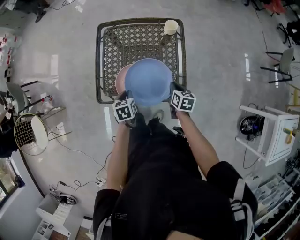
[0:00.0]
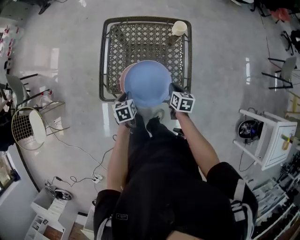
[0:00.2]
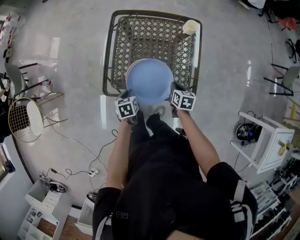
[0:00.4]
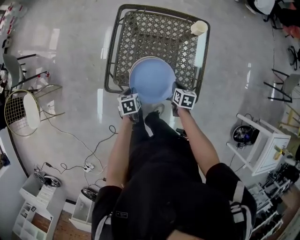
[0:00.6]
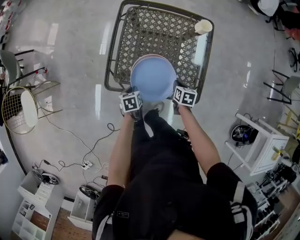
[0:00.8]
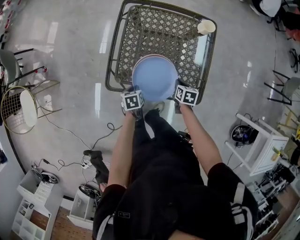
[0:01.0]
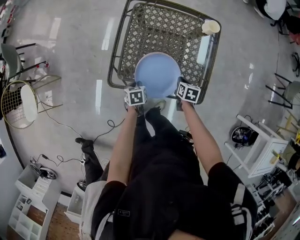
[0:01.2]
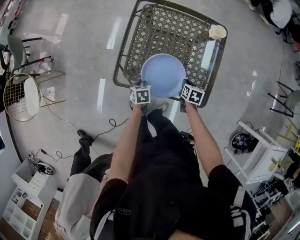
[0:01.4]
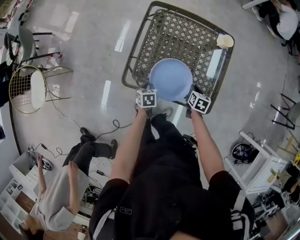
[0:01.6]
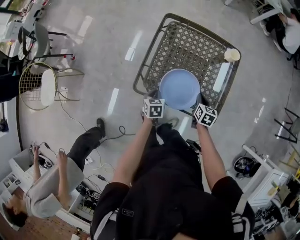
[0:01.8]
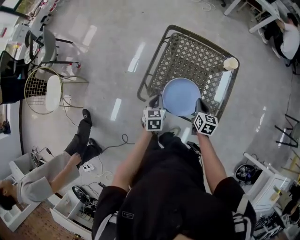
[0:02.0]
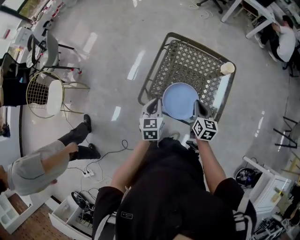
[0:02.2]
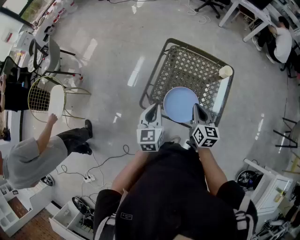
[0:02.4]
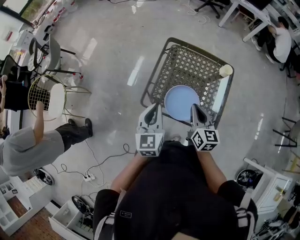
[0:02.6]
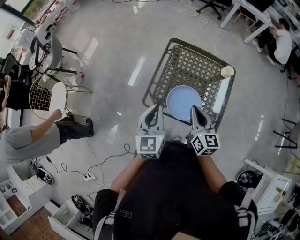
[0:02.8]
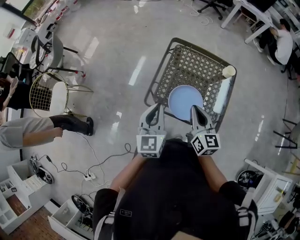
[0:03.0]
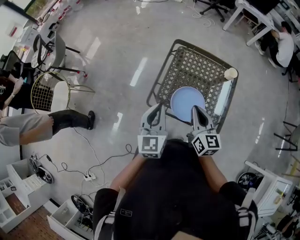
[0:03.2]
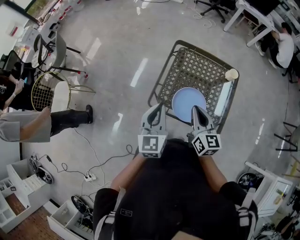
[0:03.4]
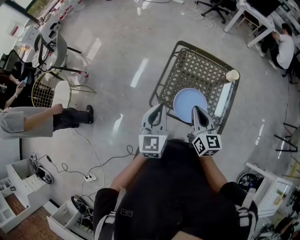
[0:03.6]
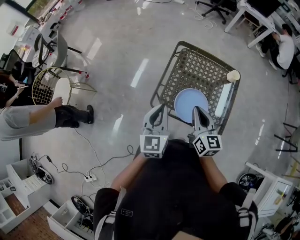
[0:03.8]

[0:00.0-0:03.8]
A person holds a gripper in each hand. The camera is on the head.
0:00.0 to 0:01.2: Both grippers travel together downward and to the left, approximately 15 cm.
0:01.2 to 0:02.6: The left gripper travels upward by roughly 40 cm, and tilts its fingers some 50 degrees upward. Meanwhile the right gripper shifts approximately 35 cm upward and to the left, and tilts its fingers roughly 40 degrees upward.
0:02.6 to 0:03.8: The right gripper travels to the left by roughly 5 cm.

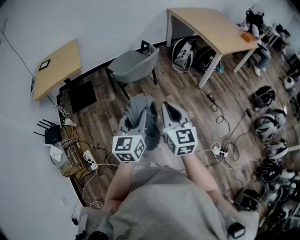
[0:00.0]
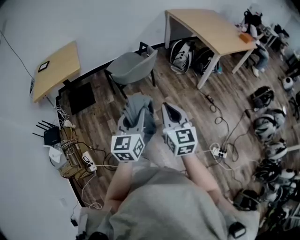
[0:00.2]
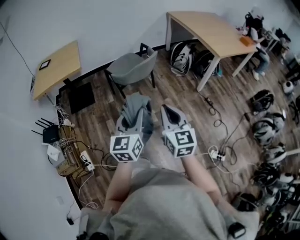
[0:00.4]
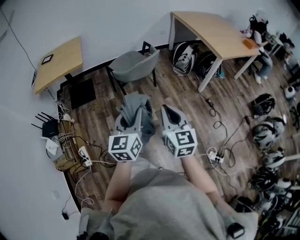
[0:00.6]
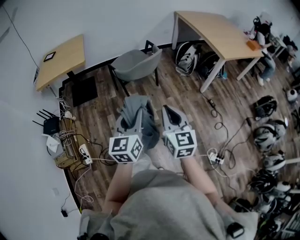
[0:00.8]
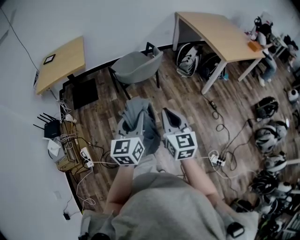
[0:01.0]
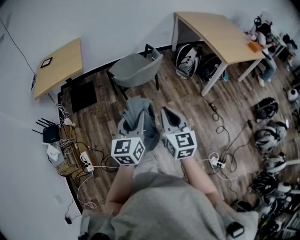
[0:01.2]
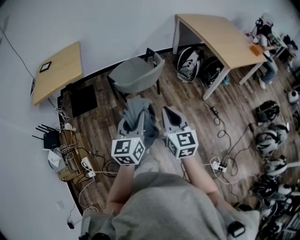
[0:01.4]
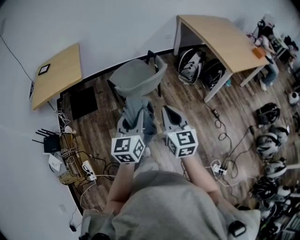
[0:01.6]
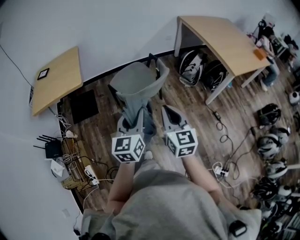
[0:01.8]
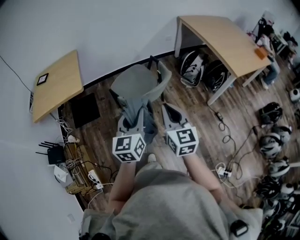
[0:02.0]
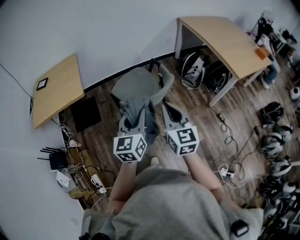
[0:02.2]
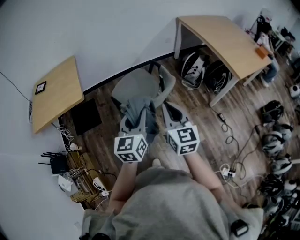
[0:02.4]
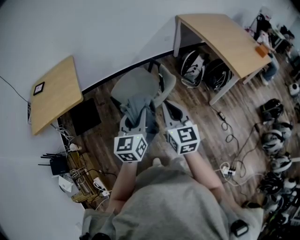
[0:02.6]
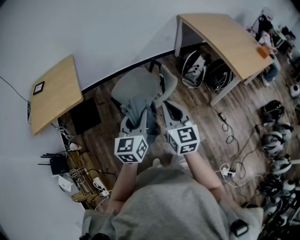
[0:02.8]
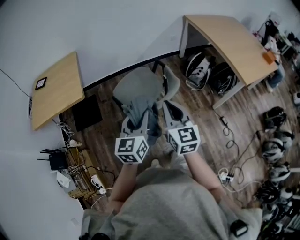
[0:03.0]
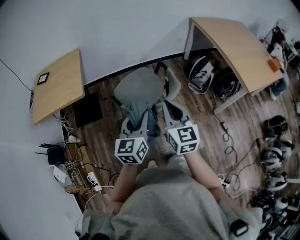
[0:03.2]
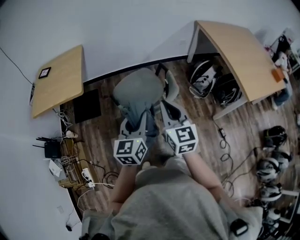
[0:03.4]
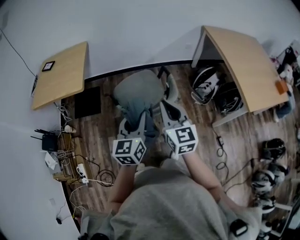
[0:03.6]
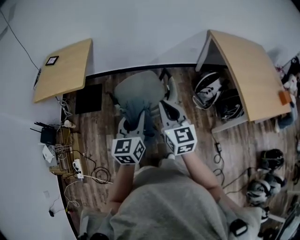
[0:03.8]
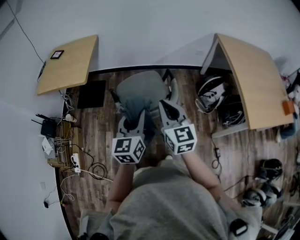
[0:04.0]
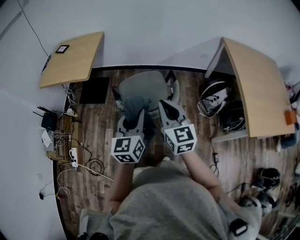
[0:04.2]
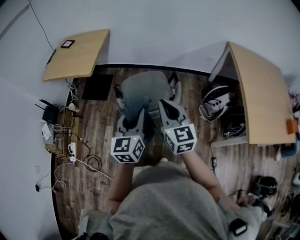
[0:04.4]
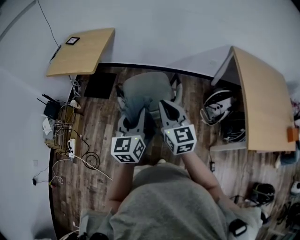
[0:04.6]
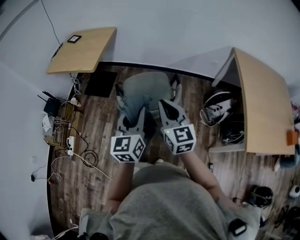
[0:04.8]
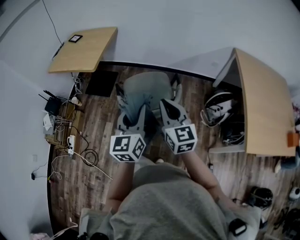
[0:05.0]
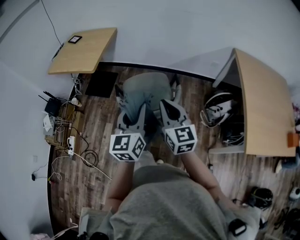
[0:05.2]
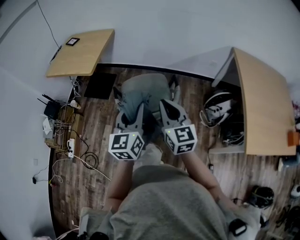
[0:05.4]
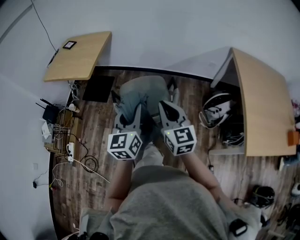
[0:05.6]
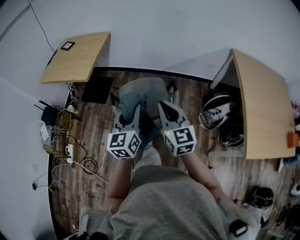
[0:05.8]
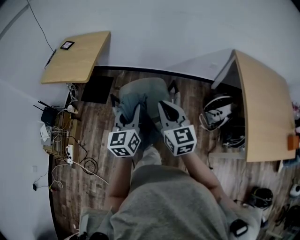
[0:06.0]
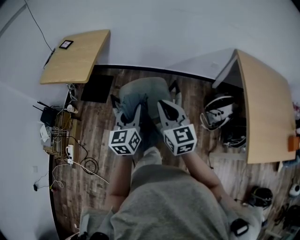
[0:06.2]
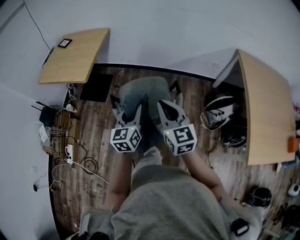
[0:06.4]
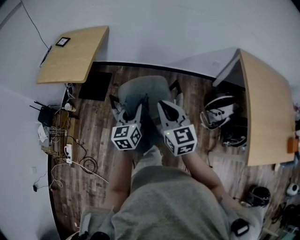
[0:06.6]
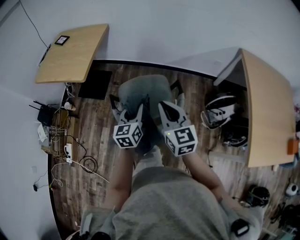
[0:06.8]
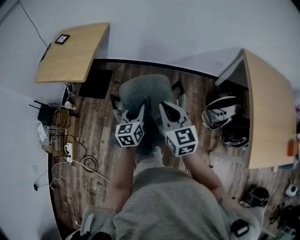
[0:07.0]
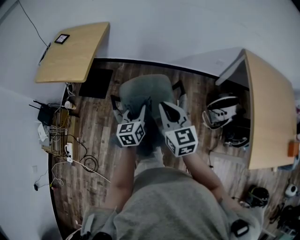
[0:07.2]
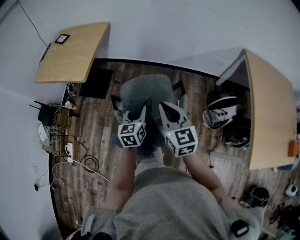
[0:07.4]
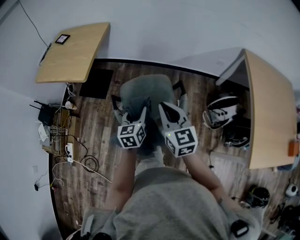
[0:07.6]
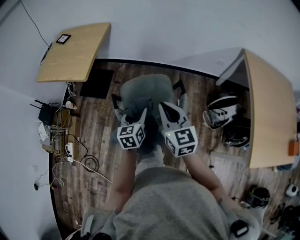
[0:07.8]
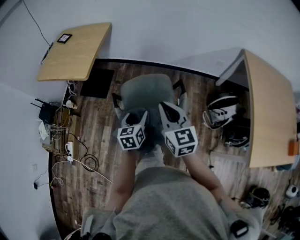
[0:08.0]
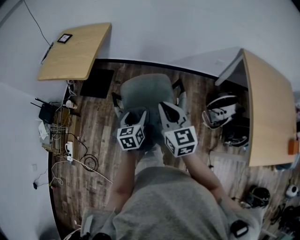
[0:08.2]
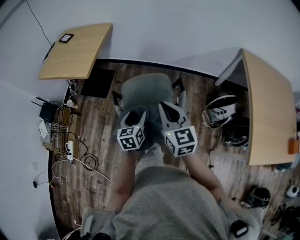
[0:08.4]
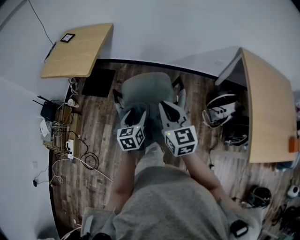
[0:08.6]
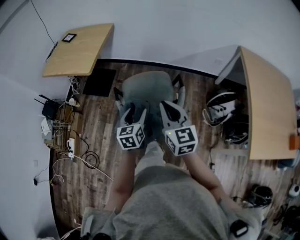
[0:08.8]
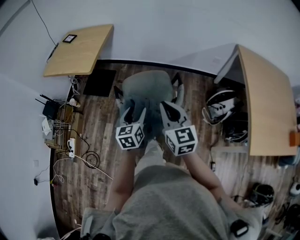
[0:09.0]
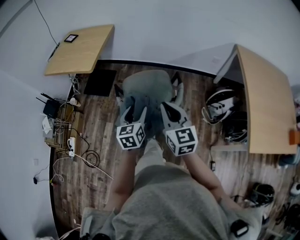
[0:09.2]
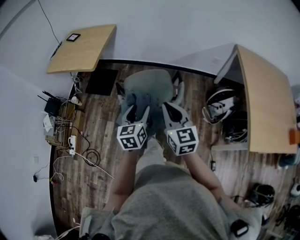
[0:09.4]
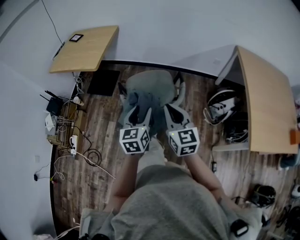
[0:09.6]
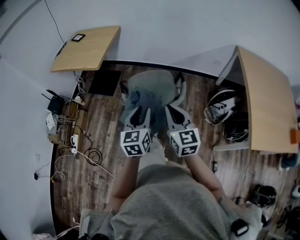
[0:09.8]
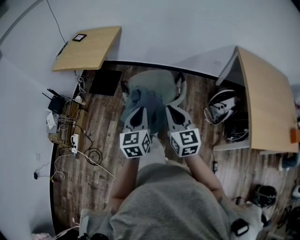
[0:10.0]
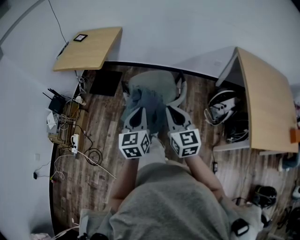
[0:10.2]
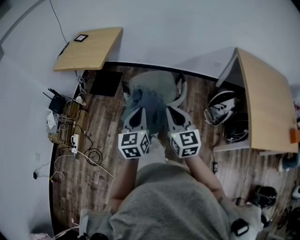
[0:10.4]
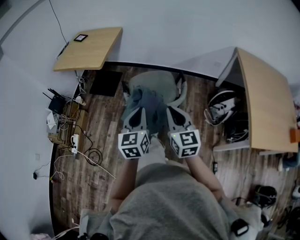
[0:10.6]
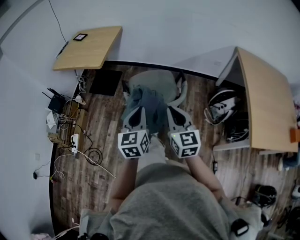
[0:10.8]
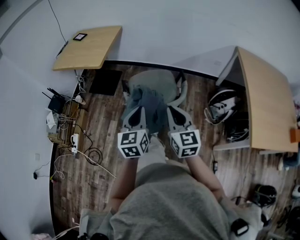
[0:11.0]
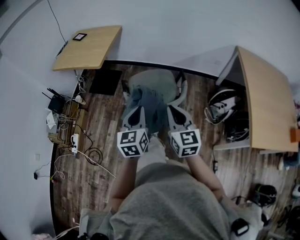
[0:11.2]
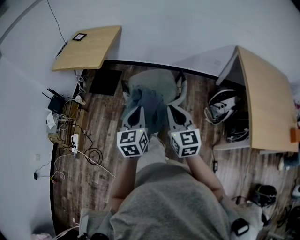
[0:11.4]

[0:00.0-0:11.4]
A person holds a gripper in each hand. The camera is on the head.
0:00.0 to 0:01.4: Both grippers travel together forward, roughly 10 cm.
0:01.4 to 0:02.8: Both grippers move forward, about 20 cm.
0:02.8 to 0:04.2: The right gripper moves approximately 15 cm, and turns by about 30 degrees. Meanwhile the left gripper shifts by some 10 cm, and swivels roughly 30 degrees.
0:04.2 to 0:05.6: The left gripper ends up approximately 5 cm from where it was. The right gripper changes place by approximately 5 cm.
0:05.6 to 0:07.2: The left gripper is displaced downward and forward by some 20 cm. The right gripper shifts some 10 cm forward and downward.
0:07.2 to 0:08.6: The two grippers go approximately 5 cm backward. The left gripper opens its fingers.
0:08.6 to 0:10.0: The left gripper moves backward and upward, some 15 cm, and closes its fingers. Meanwhile the right gripper goes some 10 cm backward.
0:10.0 to 0:11.4: The grippers move only a little.

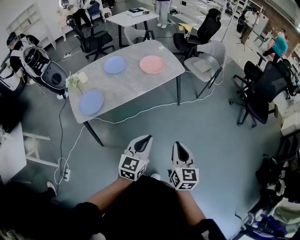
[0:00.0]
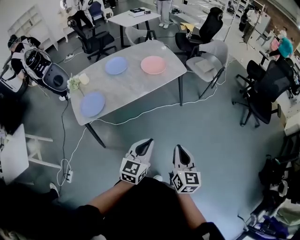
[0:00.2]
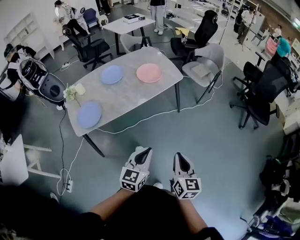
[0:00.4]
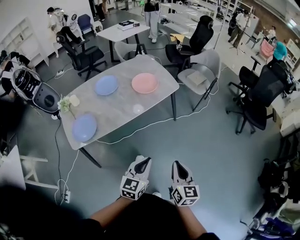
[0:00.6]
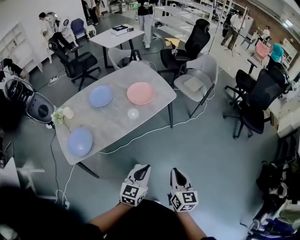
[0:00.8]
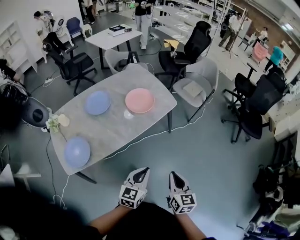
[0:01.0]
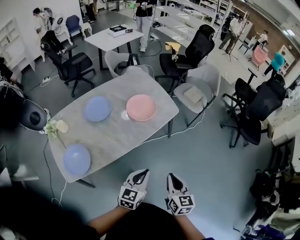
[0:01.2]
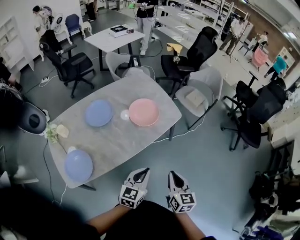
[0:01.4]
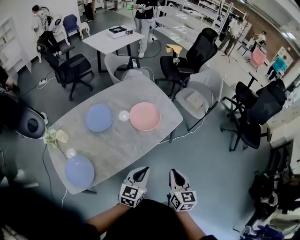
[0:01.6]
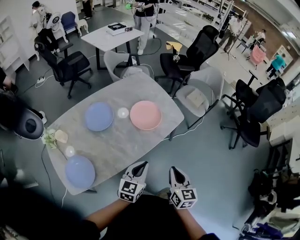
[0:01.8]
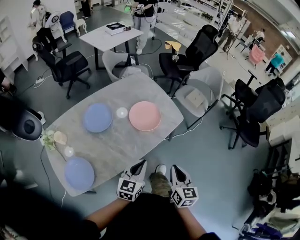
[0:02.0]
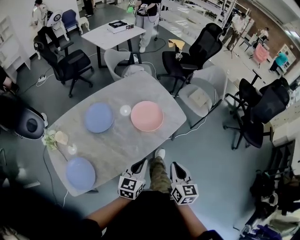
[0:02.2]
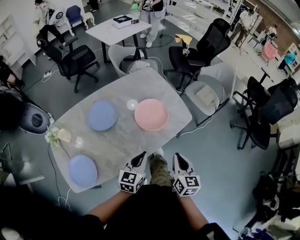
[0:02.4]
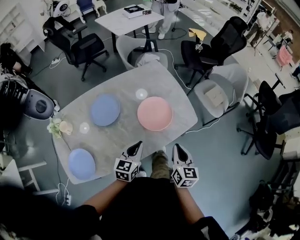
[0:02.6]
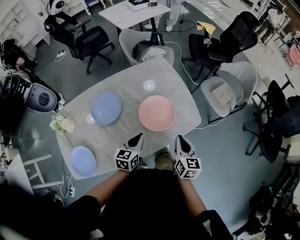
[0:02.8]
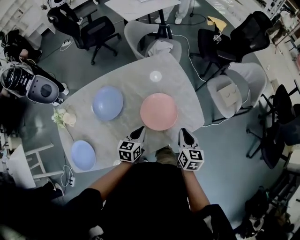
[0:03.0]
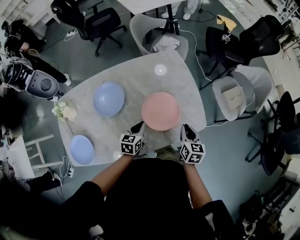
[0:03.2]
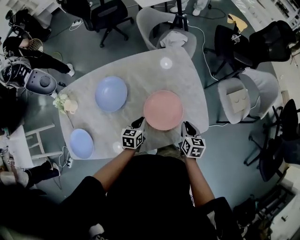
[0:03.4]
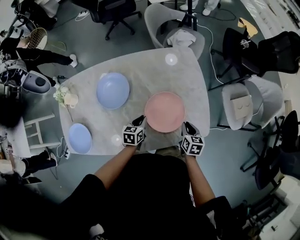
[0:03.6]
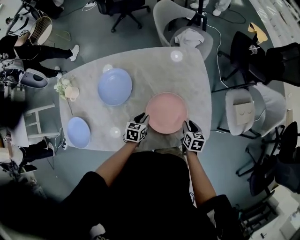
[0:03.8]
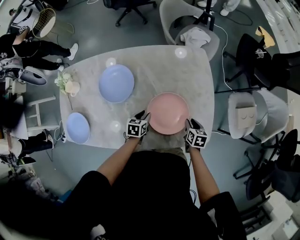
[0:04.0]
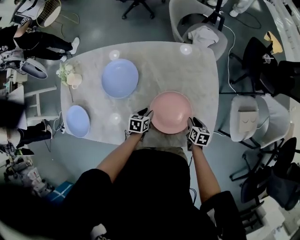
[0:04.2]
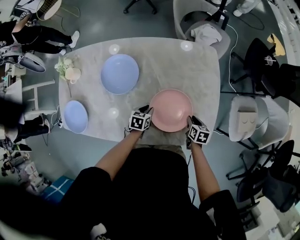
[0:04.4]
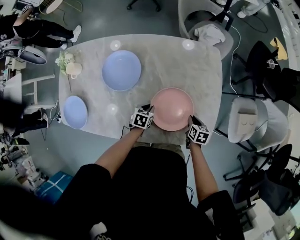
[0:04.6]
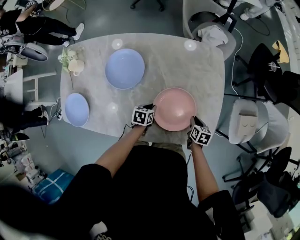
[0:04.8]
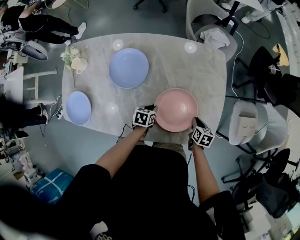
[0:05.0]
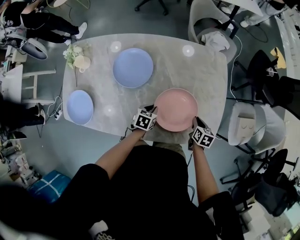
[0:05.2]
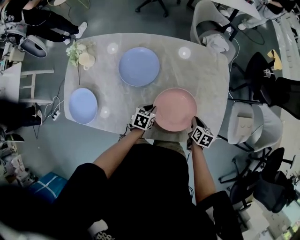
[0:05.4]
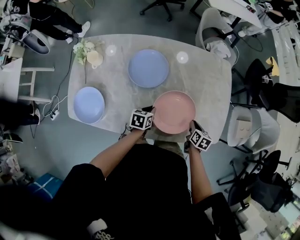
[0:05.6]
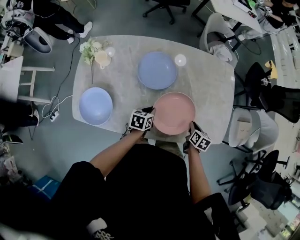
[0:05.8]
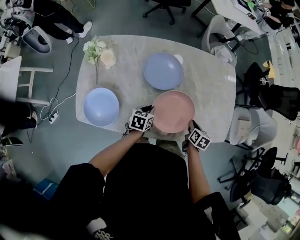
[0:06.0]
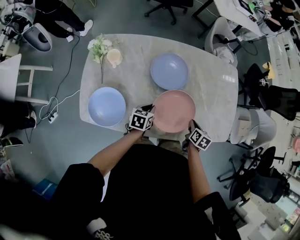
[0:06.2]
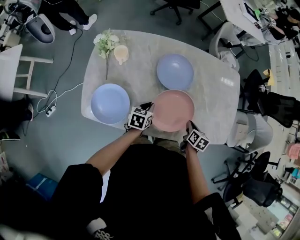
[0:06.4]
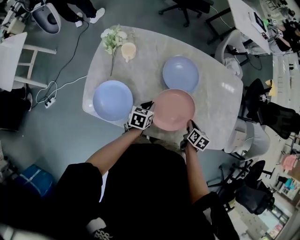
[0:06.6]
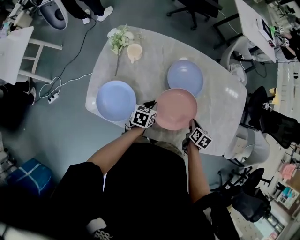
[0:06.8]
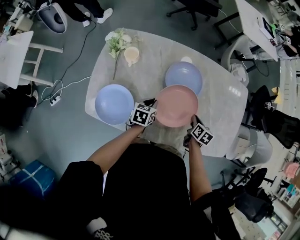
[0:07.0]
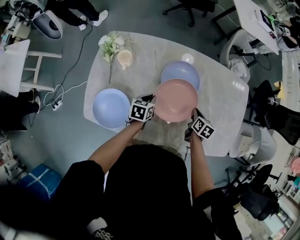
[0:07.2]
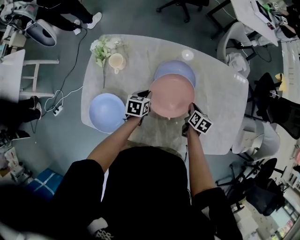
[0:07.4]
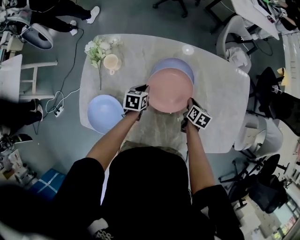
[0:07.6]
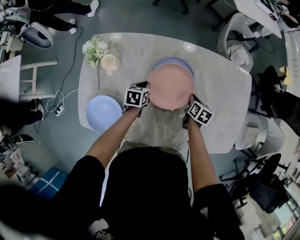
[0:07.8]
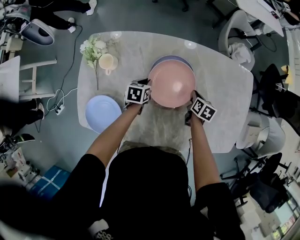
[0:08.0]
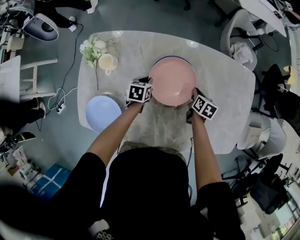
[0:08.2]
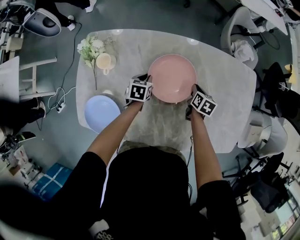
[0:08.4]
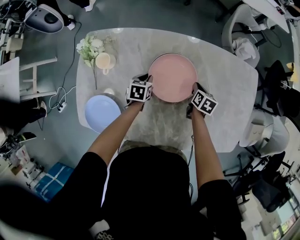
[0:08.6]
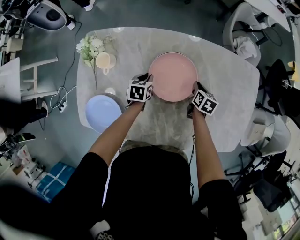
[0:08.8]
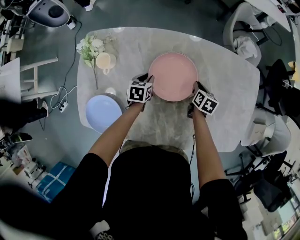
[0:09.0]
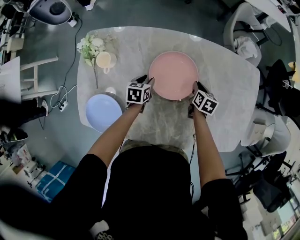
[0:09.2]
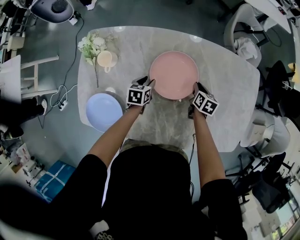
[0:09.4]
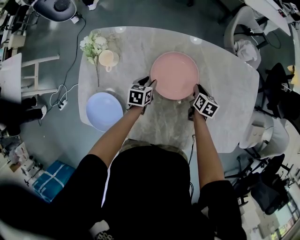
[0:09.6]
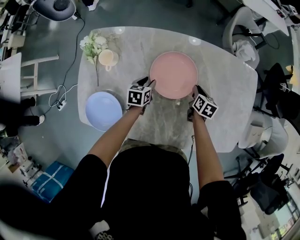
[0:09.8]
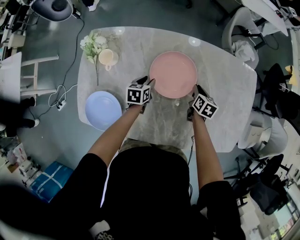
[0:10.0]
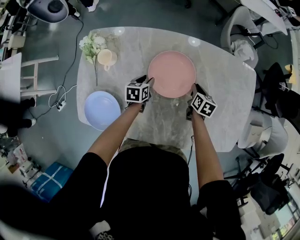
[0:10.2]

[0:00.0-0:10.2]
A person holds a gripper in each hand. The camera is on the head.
0:00.0 to 0:01.4: The two grippers go about 30 cm forward.
0:01.4 to 0:03.0: Both grippers travel together forward, roughly 35 cm. The left gripper changes its angle by approximately 30 degrees.
0:03.0 to 0:04.4: Both grippers travel together downward and forward, roughly 25 cm. The right gripper turns by roughly 40 degrees. The left gripper changes its angle by roughly 30 degrees, and opens up.
0:04.4 to 0:05.8: Both grippers move to the left, backward and upward, roughly 20 cm.
0:05.8 to 0:07.2: The left gripper moves to the left, some 15 cm, while the right gripper shifts roughly 20 cm to the left and forward.
0:07.2 to 0:08.8: The two grippers go some 15 cm forward and downward.
0:08.8 to 0:10.2: The left gripper opens.
